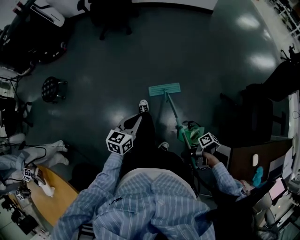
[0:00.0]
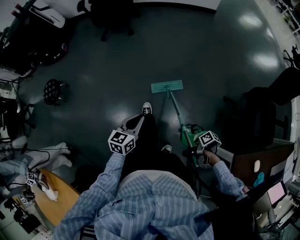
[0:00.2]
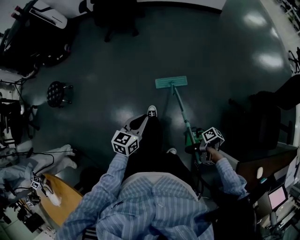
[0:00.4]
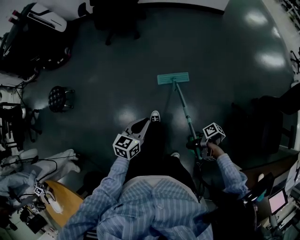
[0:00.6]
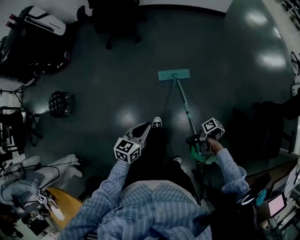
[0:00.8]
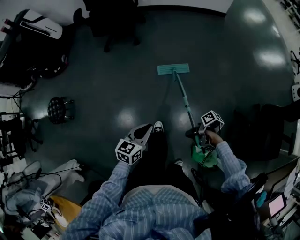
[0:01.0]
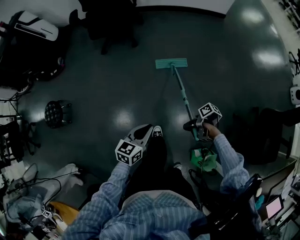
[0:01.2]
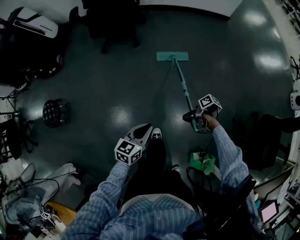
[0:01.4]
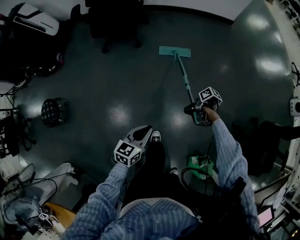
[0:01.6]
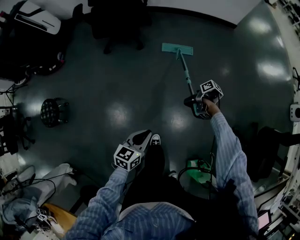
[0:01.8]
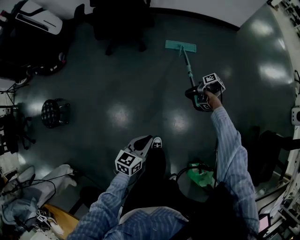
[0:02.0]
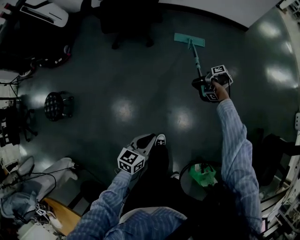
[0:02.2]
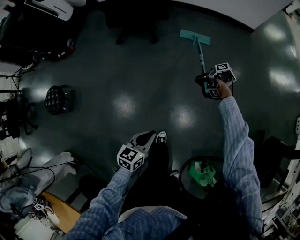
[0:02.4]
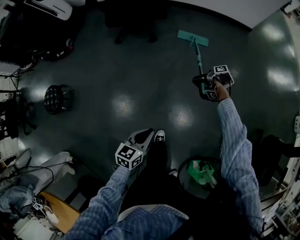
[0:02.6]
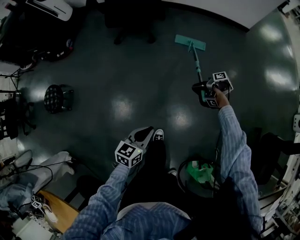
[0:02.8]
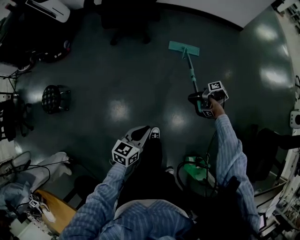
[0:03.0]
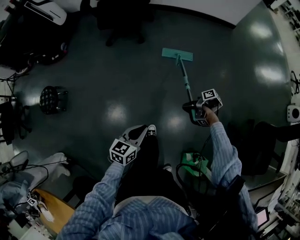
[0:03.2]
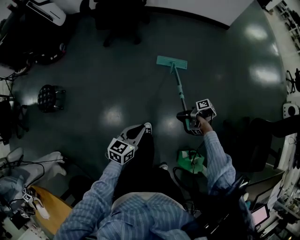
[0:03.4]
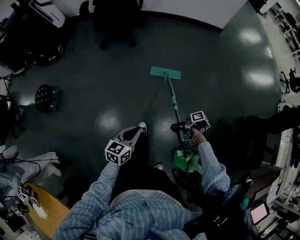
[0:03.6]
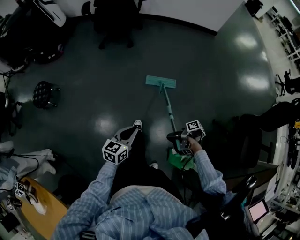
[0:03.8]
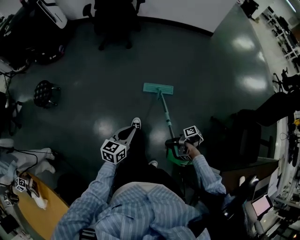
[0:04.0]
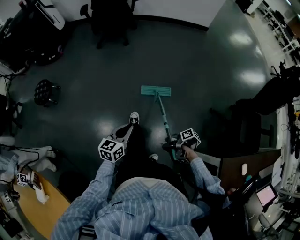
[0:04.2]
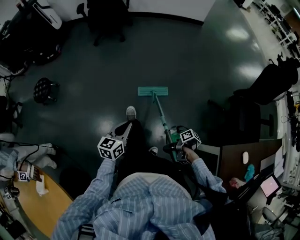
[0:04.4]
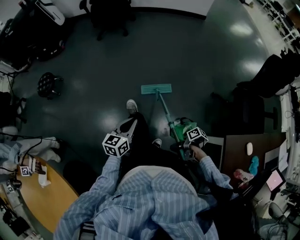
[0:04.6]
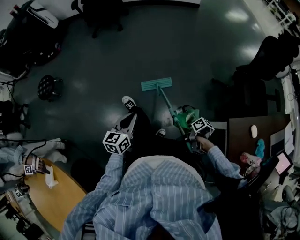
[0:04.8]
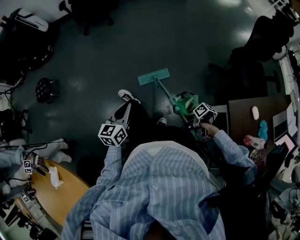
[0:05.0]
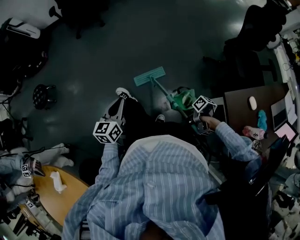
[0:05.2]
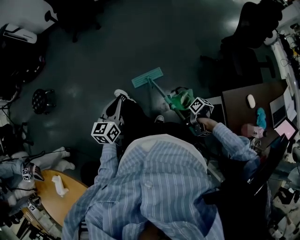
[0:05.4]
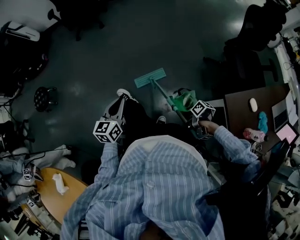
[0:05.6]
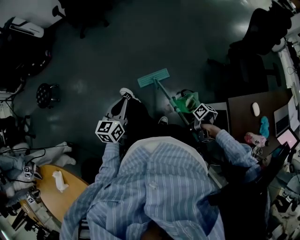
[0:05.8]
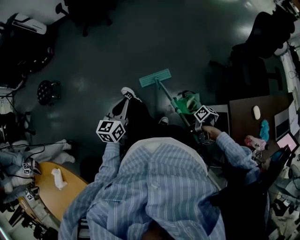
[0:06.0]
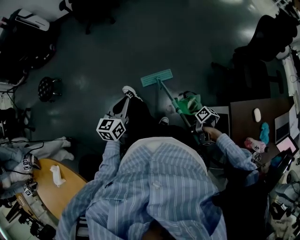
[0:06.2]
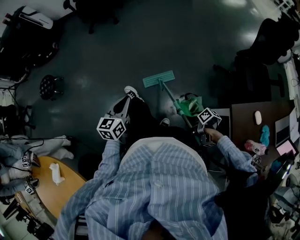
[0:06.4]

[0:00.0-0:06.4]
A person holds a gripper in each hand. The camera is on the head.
0:00.0 to 0:01.6: The left gripper ends up roughly 35 cm from where it was.
0:01.6 to 0:03.2: The left gripper changes place by some 10 cm.
0:03.2 to 0:04.8: The left gripper moves roughly 40 cm.

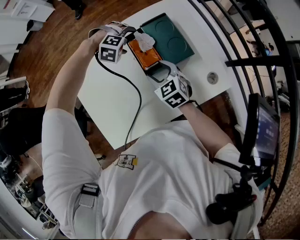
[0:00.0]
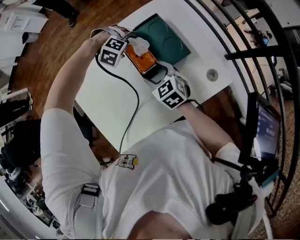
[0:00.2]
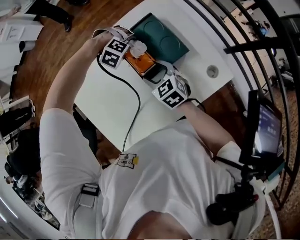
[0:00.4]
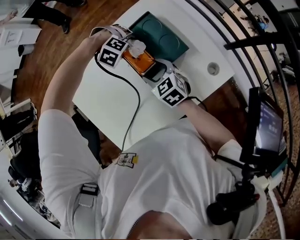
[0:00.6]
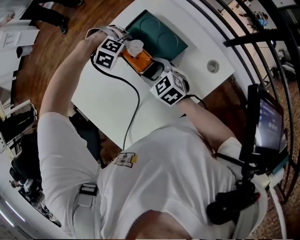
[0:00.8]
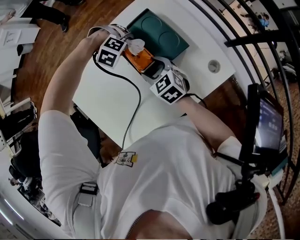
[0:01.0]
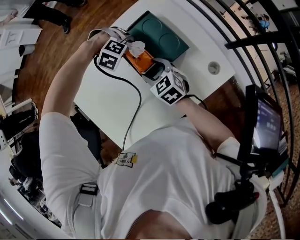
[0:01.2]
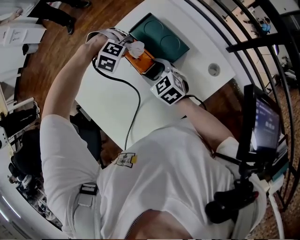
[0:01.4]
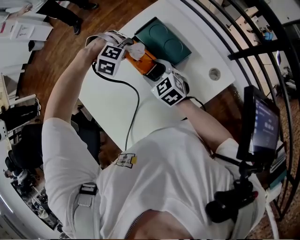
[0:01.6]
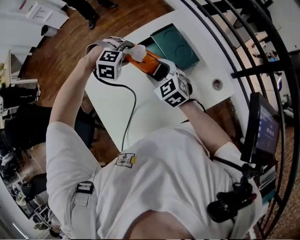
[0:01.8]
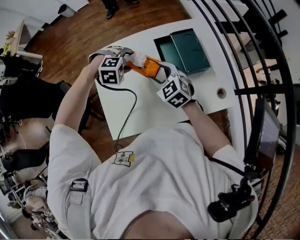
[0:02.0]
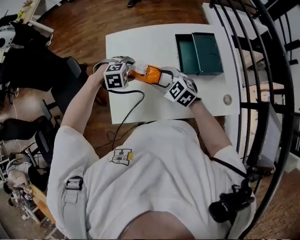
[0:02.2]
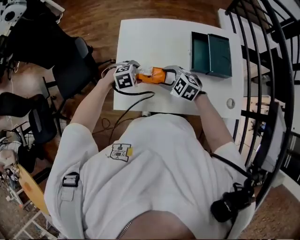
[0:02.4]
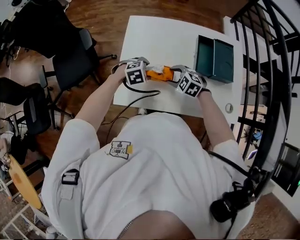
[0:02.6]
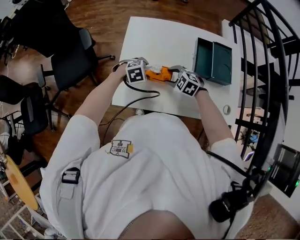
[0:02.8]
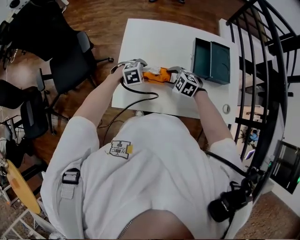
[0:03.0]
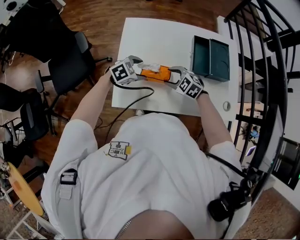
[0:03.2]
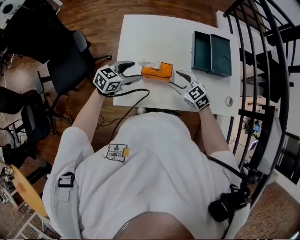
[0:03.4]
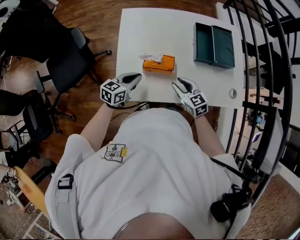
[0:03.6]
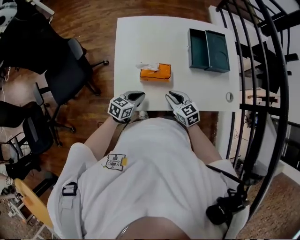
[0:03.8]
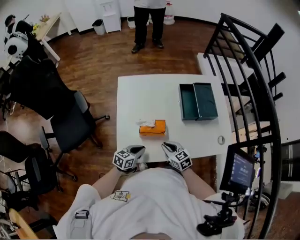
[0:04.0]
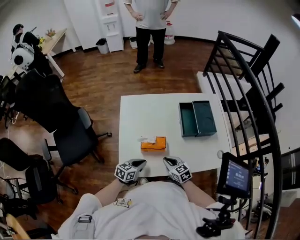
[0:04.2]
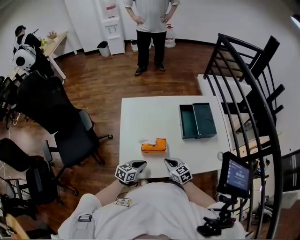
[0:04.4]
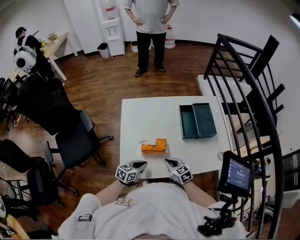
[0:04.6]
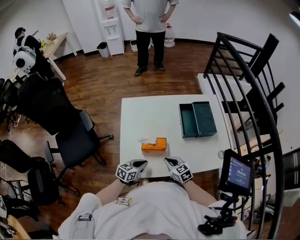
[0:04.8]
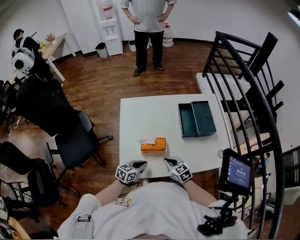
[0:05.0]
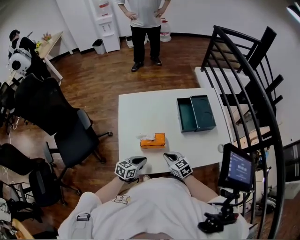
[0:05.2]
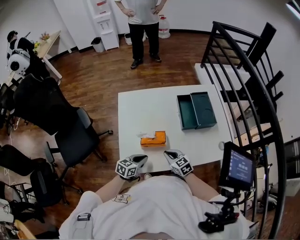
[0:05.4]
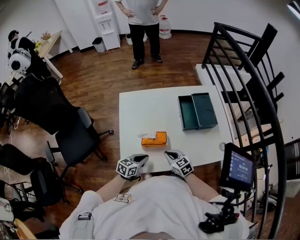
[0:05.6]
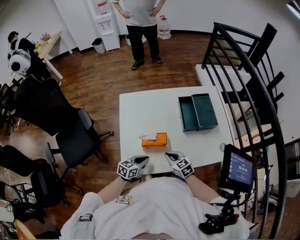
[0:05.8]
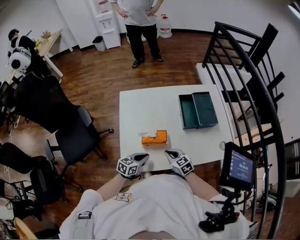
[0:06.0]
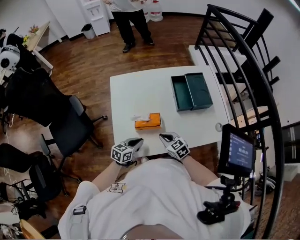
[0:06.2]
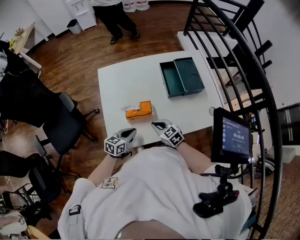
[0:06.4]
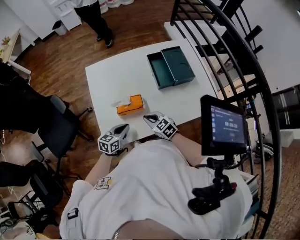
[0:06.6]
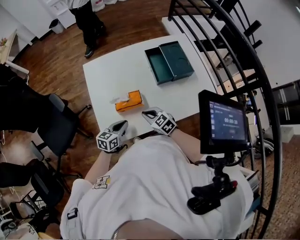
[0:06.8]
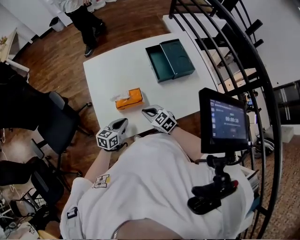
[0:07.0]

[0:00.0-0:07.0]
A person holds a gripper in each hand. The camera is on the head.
0:00.0 to 0:01.4: The left gripper closes.
0:01.4 to 0:02.8: The right gripper moves approximately 10 cm upward and comes back, and twists approximately 60 degrees counterclockwise, seen from behind, while the left gripper moves roughly 10 cm upward and comes back, and twists roughly 90 degrees counterclockwise, seen from behind.
0:02.8 to 0:04.2: The right gripper moves approximately 10 cm, rotates around the line of its fingers by about 40 degrees, clockwise from behind, and closes up, while the left gripper reaches roughly 5 cm upward, then returns, angles its fingers upward, by roughly 40 degrees, and closes its fingers.
0:04.2 to 0:07.0: The grippers stay close to where they were, moving slightly.

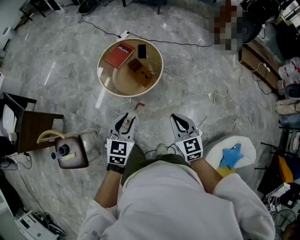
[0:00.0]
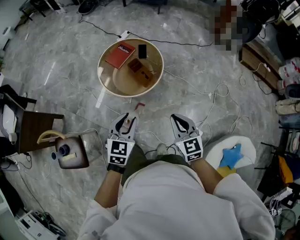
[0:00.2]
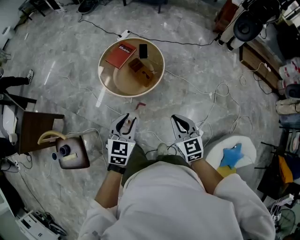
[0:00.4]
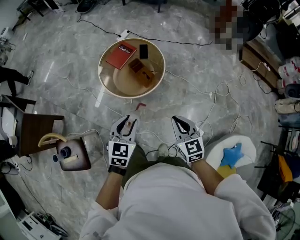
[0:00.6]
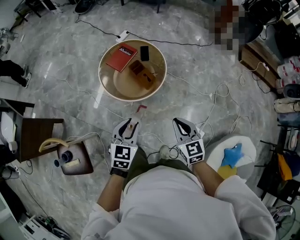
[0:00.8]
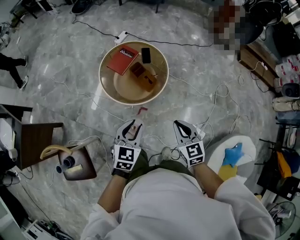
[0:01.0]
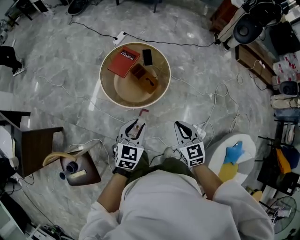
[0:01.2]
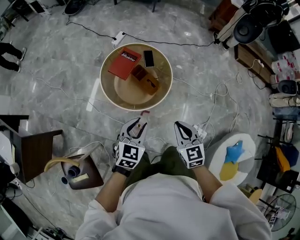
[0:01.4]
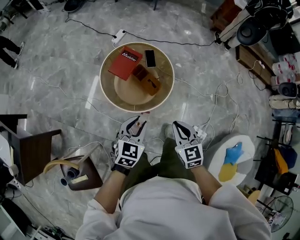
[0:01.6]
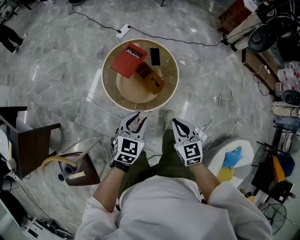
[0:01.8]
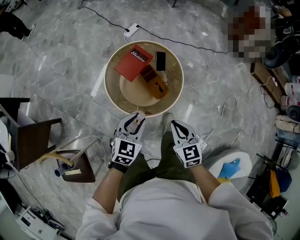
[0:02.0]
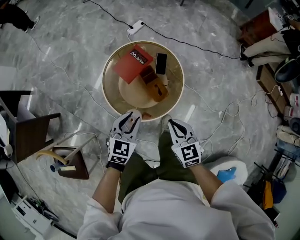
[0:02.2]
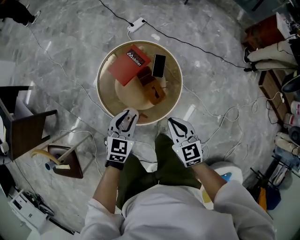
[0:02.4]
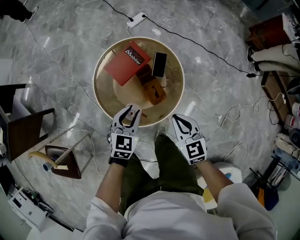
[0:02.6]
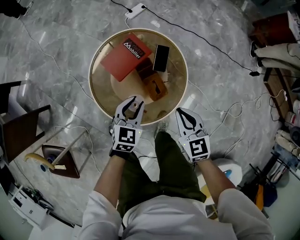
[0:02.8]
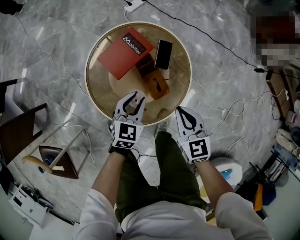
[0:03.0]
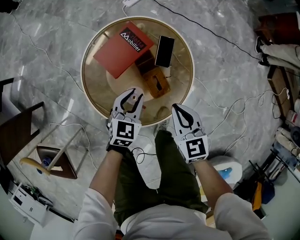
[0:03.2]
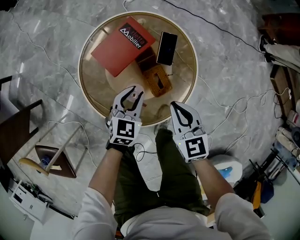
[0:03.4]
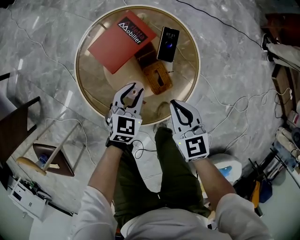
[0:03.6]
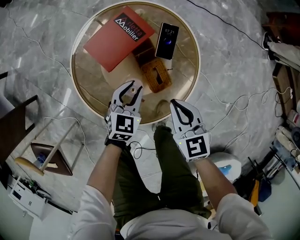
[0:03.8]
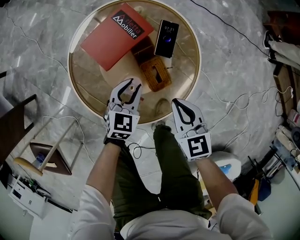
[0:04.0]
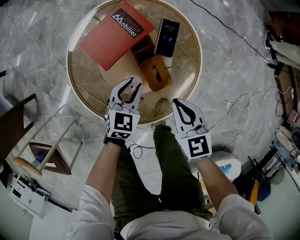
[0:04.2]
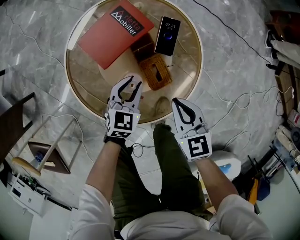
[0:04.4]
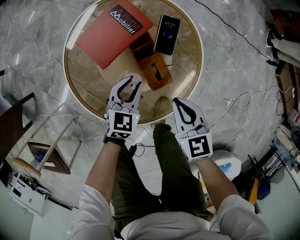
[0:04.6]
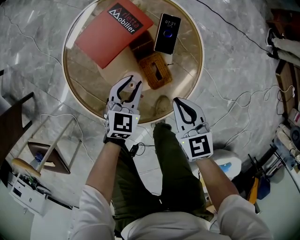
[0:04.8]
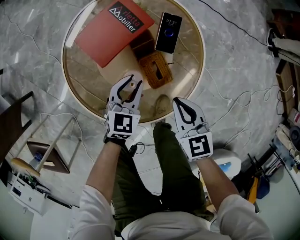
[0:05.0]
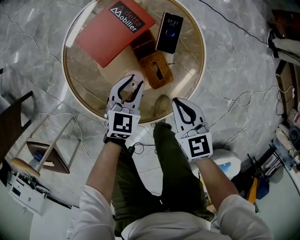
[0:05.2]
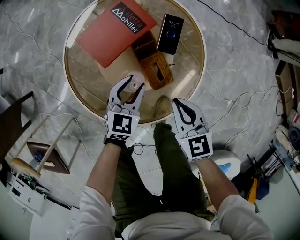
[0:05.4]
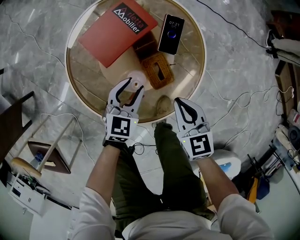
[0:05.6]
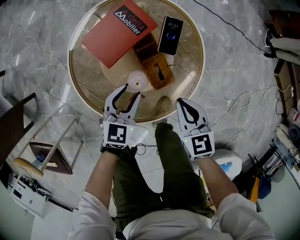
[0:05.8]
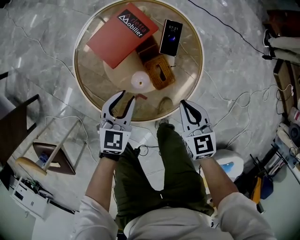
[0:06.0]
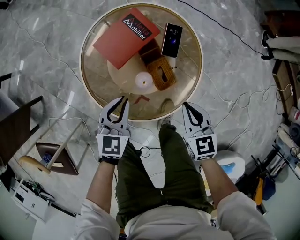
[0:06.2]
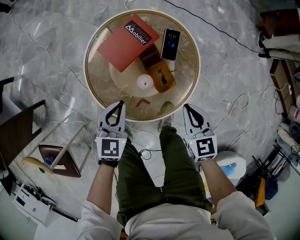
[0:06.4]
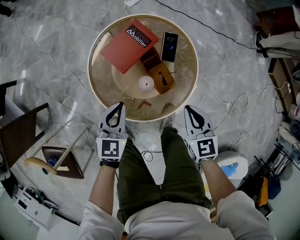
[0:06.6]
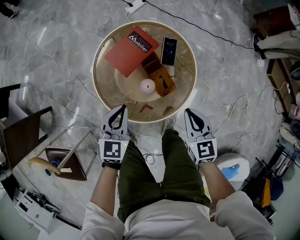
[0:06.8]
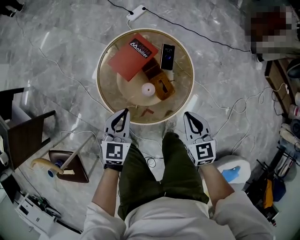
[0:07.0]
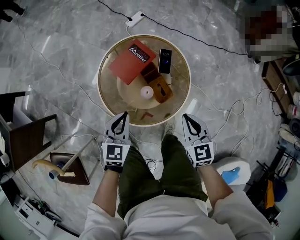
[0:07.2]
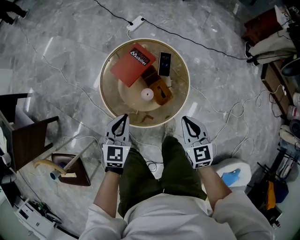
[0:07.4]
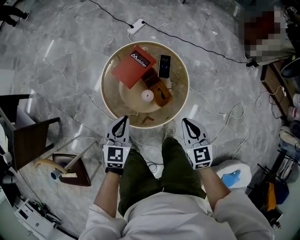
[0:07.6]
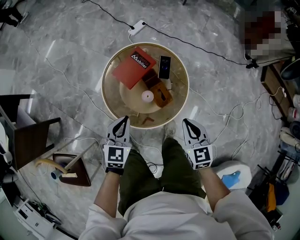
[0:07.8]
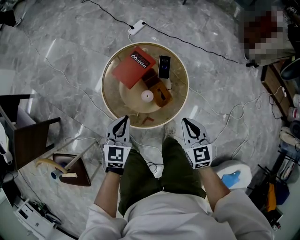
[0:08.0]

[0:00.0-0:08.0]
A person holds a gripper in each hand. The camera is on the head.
0:00.0 to 0:01.6: The left gripper shifts about 20 cm forward, to the left and downward. Meanwhile the right gripper travels to the left and forward by approximately 20 cm.
0:01.6 to 0:03.2: The left gripper shifts some 40 cm downward and forward, while the right gripper heads forward and downward, covering approximately 35 cm.
0:03.2 to 0:04.8: Both grippers move downward, roughly 10 cm.
0:04.8 to 0:06.4: The right gripper heads upward, covering some 10 cm, while the left gripper heads upward and to the left, covering approximately 15 cm, and closes up.
0:06.4 to 0:08.0: The left gripper moves upward, roughly 15 cm; the right gripper heads upward and backward, covering roughly 15 cm.

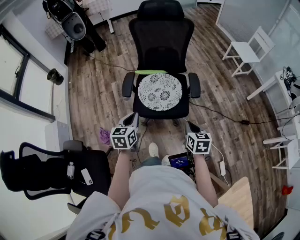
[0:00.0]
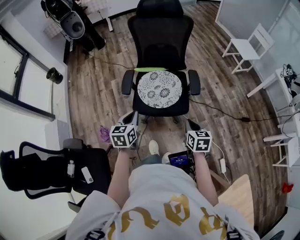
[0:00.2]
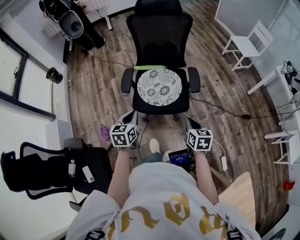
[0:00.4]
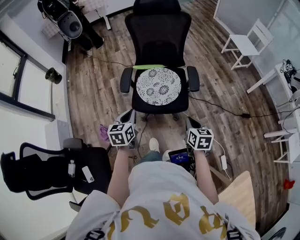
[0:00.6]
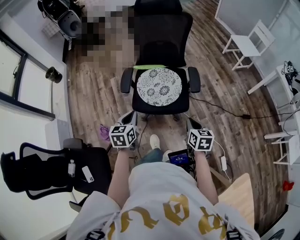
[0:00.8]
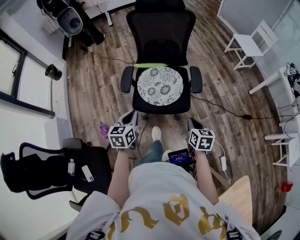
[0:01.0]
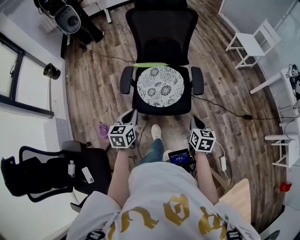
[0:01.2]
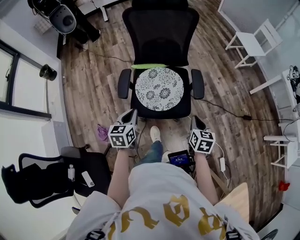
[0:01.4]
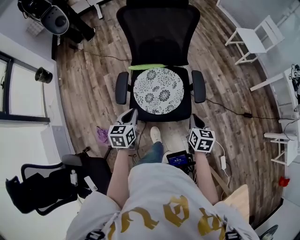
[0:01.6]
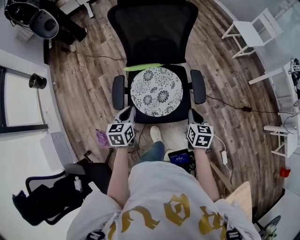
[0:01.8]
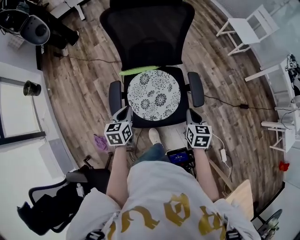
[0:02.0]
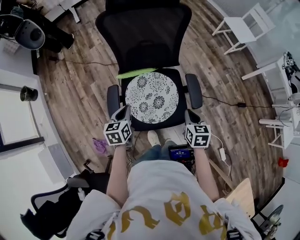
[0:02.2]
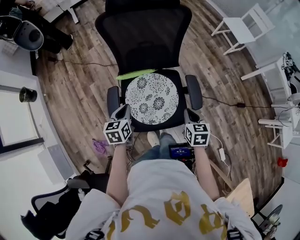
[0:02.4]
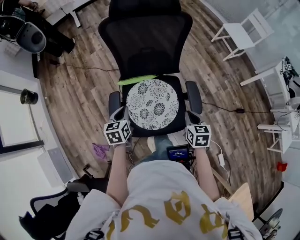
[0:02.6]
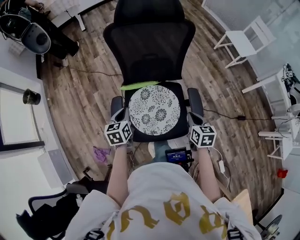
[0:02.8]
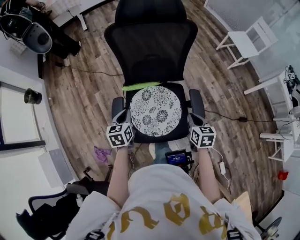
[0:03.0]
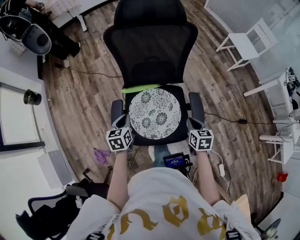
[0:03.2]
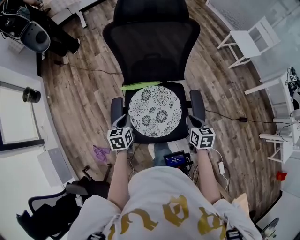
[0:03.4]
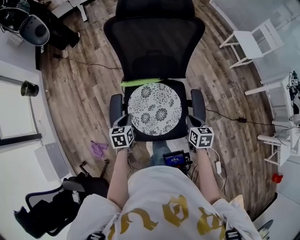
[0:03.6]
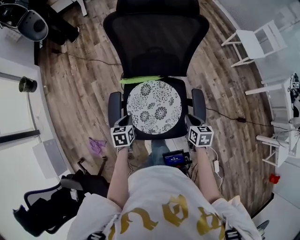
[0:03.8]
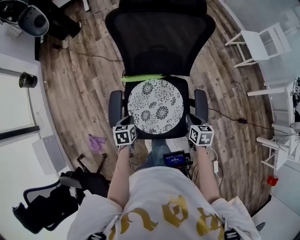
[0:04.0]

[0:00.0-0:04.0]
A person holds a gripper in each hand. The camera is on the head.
0:00.0 to 0:01.4: Both grippers travel together forward, about 10 cm.
0:01.4 to 0:02.6: The grippers both shift forward by some 20 cm.
0:02.6 to 0:04.0: The left gripper shifts roughly 15 cm downward. The right gripper goes approximately 10 cm downward and forward.
